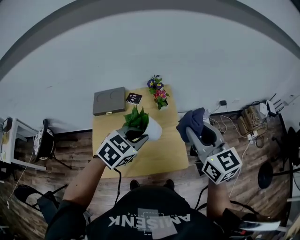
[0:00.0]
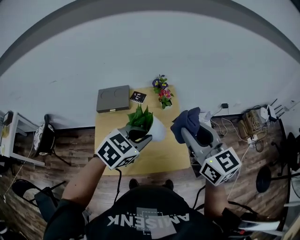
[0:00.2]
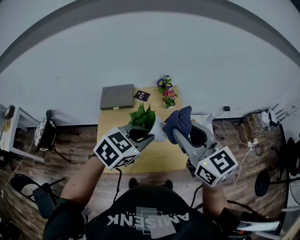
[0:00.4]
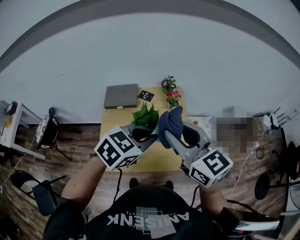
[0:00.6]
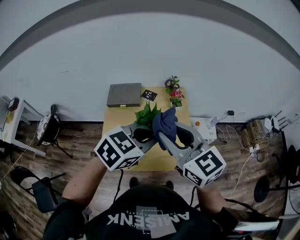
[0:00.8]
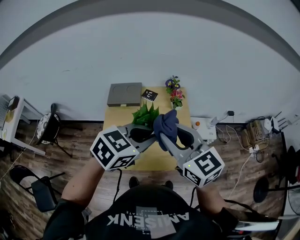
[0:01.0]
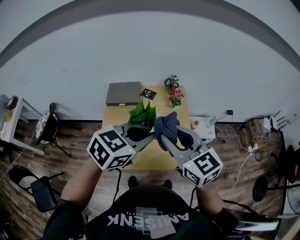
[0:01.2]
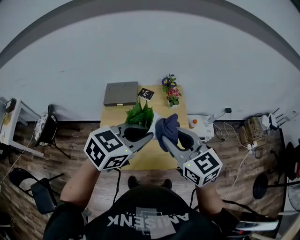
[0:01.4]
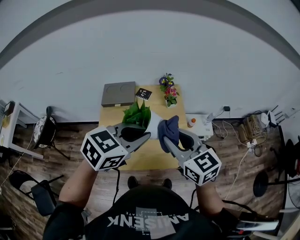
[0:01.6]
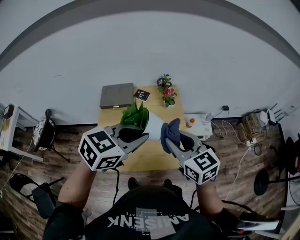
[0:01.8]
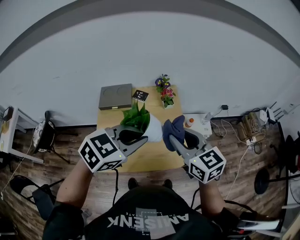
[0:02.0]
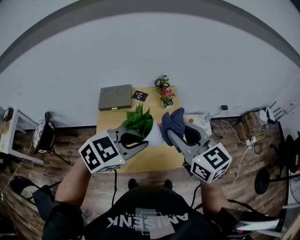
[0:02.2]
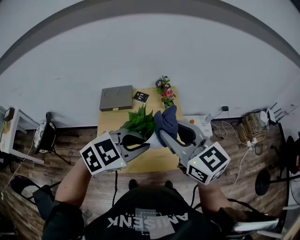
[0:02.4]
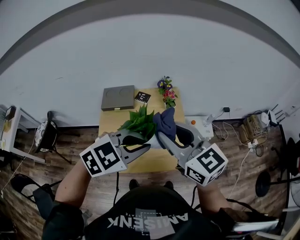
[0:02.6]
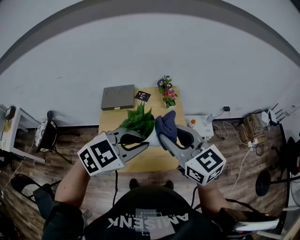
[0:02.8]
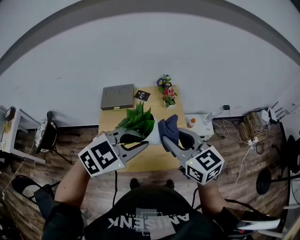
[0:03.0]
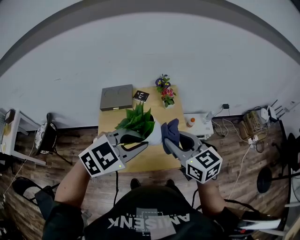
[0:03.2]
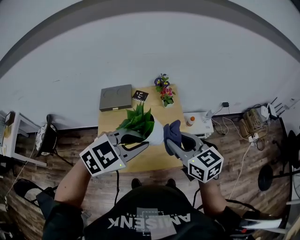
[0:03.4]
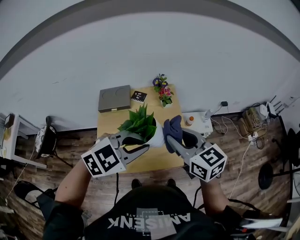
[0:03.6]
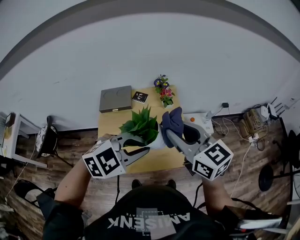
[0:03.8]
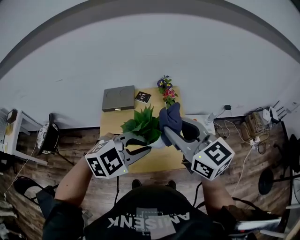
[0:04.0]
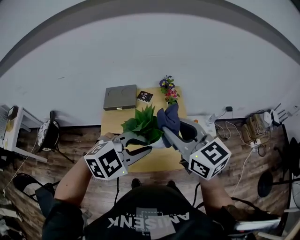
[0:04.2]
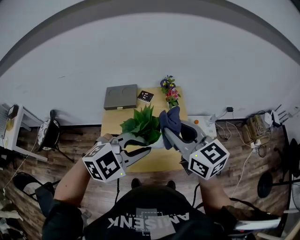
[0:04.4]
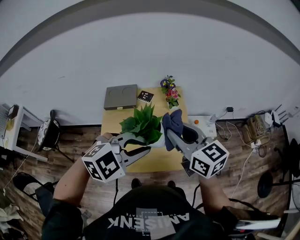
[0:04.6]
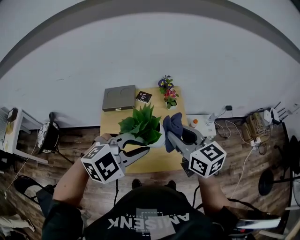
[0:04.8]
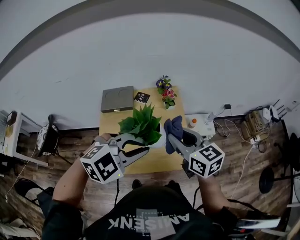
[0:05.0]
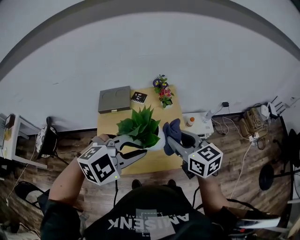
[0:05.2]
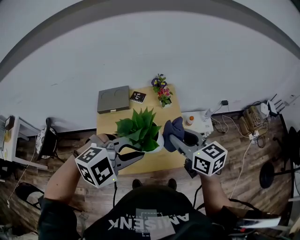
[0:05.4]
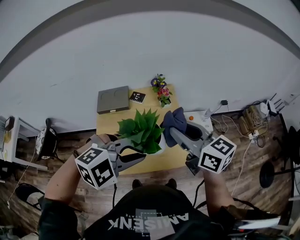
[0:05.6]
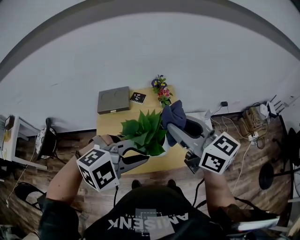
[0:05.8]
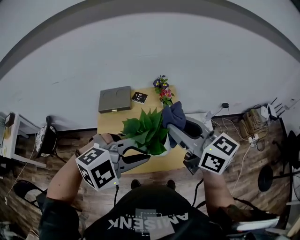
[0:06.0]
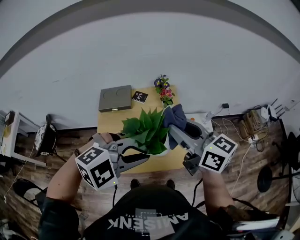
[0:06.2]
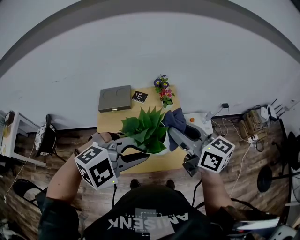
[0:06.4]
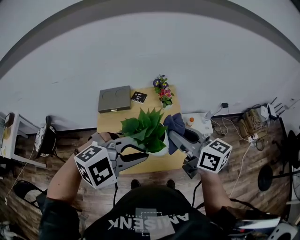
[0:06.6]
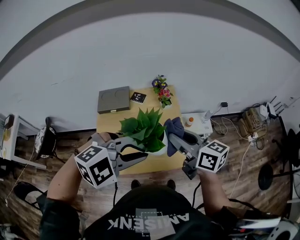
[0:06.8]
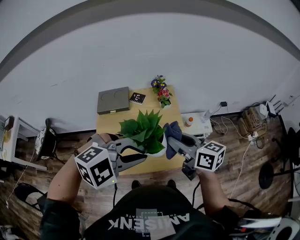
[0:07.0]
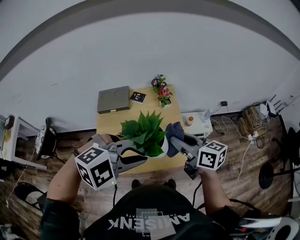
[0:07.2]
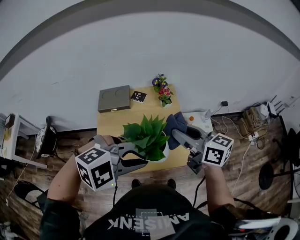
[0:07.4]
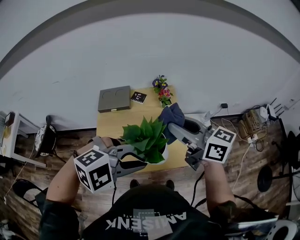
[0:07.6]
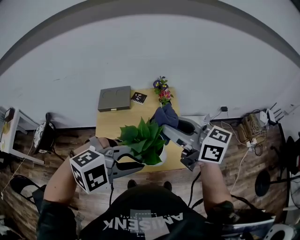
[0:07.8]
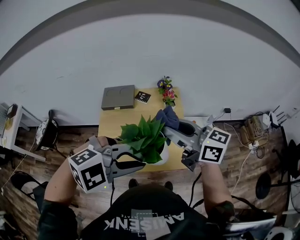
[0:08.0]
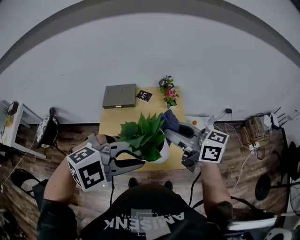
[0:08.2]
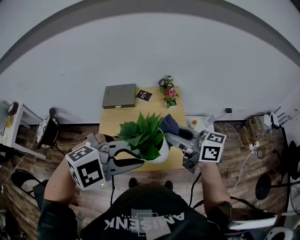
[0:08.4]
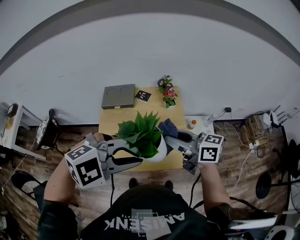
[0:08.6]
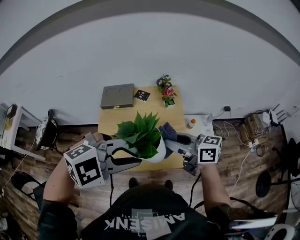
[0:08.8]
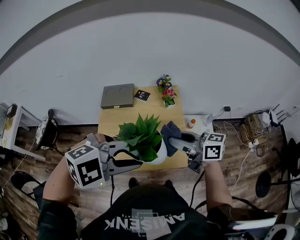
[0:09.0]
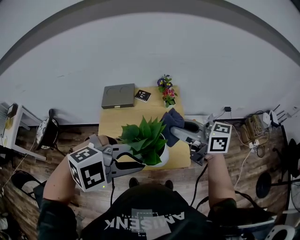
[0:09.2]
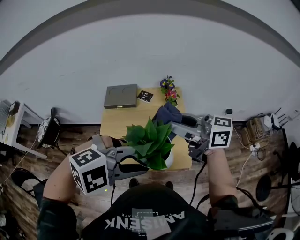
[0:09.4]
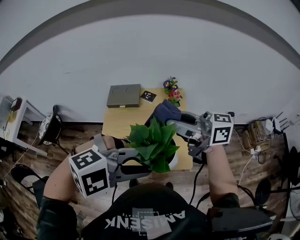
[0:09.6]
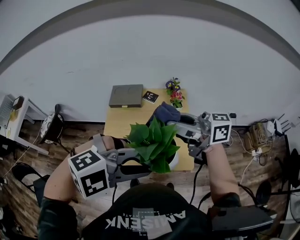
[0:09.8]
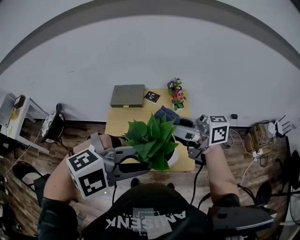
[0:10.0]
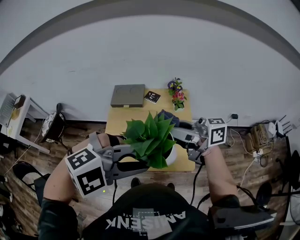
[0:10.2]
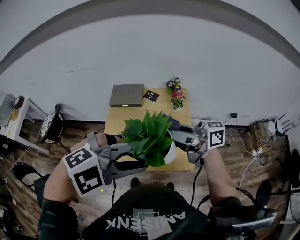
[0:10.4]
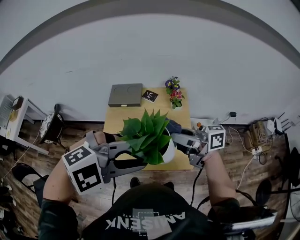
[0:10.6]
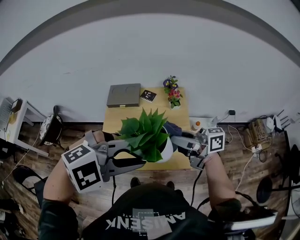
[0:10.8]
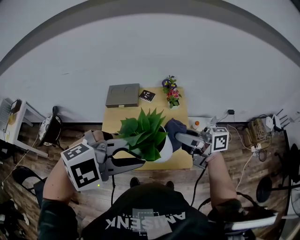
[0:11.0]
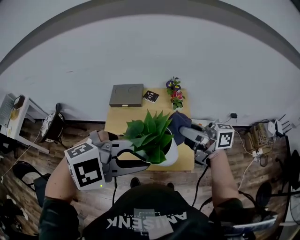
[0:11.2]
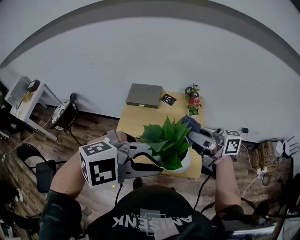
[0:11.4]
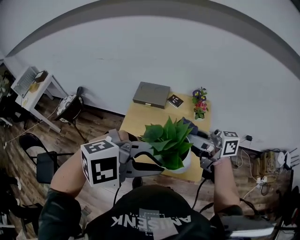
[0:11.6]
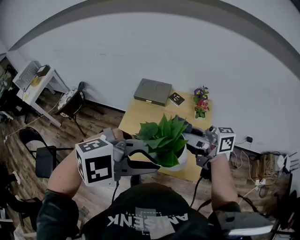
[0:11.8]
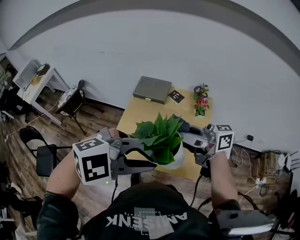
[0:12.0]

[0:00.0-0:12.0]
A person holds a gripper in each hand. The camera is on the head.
0:00.0 to 0:01.6: The left gripper goes approximately 10 cm upward and backward. The right gripper travels to the left and backward by approximately 15 cm.
0:01.6 to 0:03.0: The right gripper goes upward and returns, about 10 cm each way. The left gripper turns by some 20 degrees.
0:03.0 to 0:04.4: The right gripper goes upward and returns, about 5 cm each way.
0:04.4 to 0:06.0: The right gripper goes downward and returns, about 10 cm each way.
0:06.0 to 0:07.6: The right gripper moves some 10 cm downward and comes back.
0:07.6 to 0:09.0: The right gripper shifts roughly 10 cm downward.
0:09.0 to 0:10.4: The right gripper shifts some 5 cm upward, and changes its angle by roughly 30 degrees.
0:10.4 to 0:12.0: The grippers stay close to where they were, moving slightly.

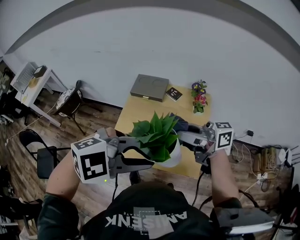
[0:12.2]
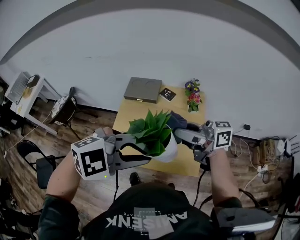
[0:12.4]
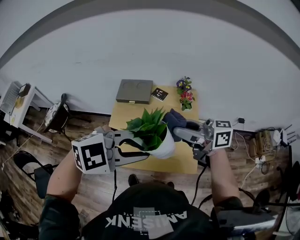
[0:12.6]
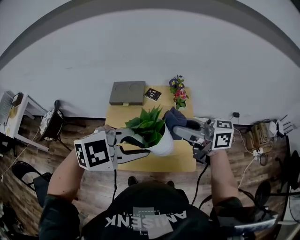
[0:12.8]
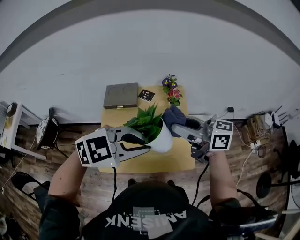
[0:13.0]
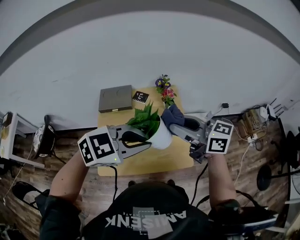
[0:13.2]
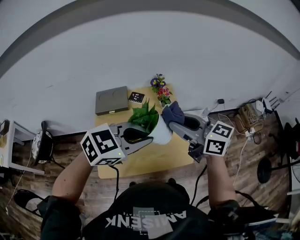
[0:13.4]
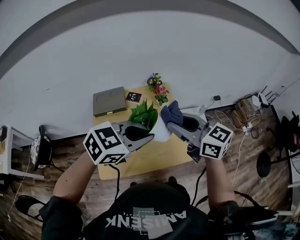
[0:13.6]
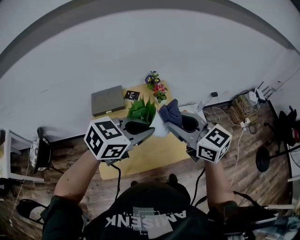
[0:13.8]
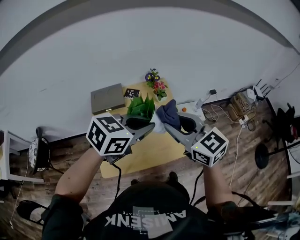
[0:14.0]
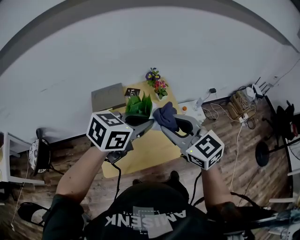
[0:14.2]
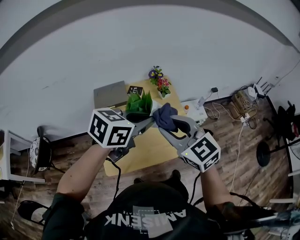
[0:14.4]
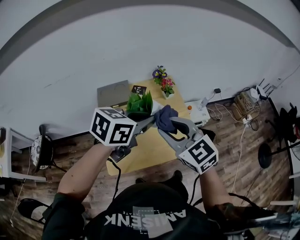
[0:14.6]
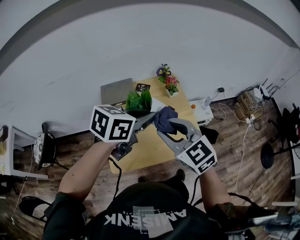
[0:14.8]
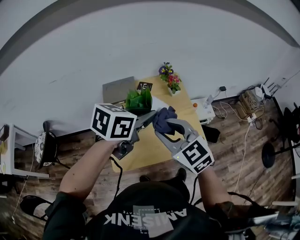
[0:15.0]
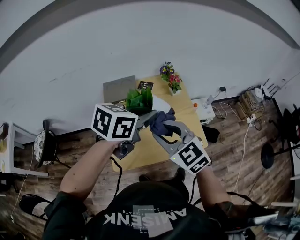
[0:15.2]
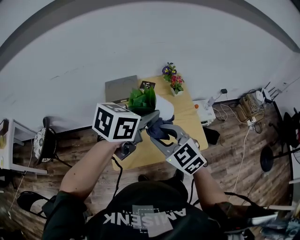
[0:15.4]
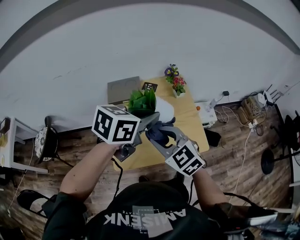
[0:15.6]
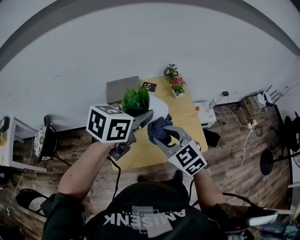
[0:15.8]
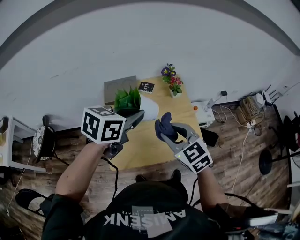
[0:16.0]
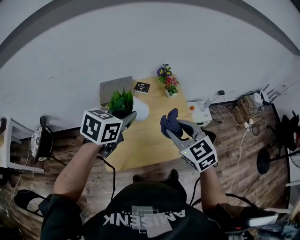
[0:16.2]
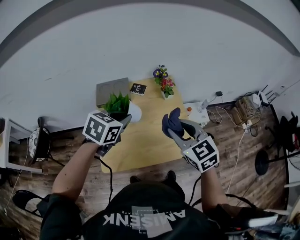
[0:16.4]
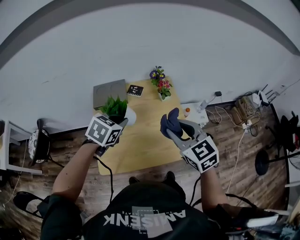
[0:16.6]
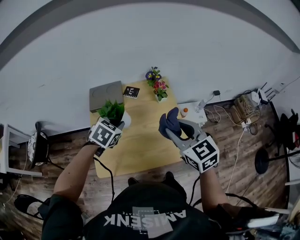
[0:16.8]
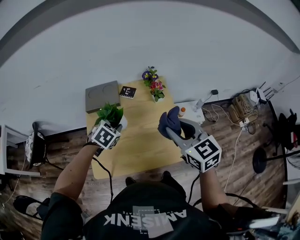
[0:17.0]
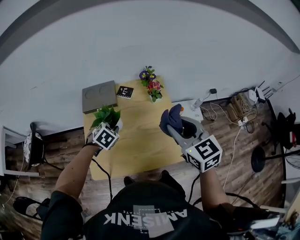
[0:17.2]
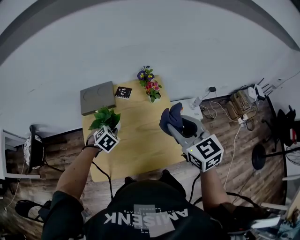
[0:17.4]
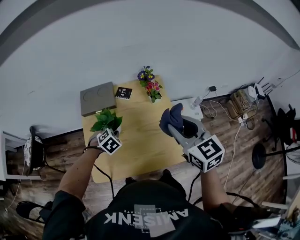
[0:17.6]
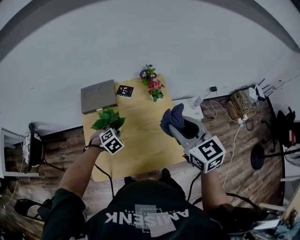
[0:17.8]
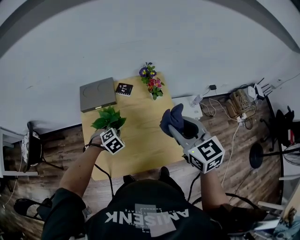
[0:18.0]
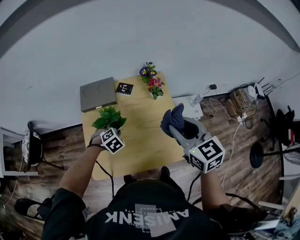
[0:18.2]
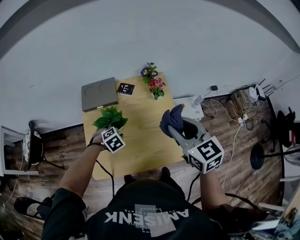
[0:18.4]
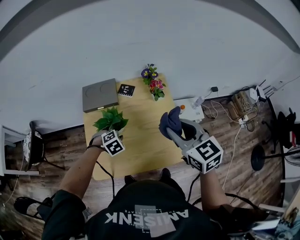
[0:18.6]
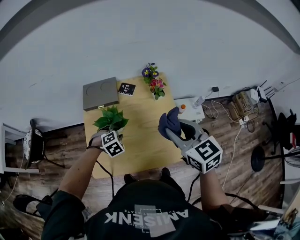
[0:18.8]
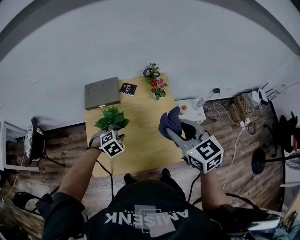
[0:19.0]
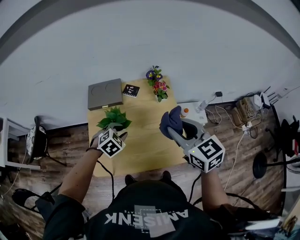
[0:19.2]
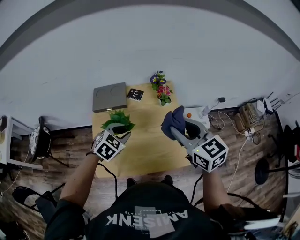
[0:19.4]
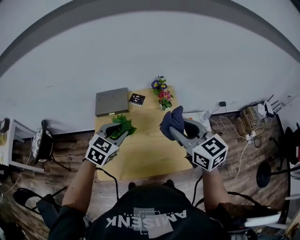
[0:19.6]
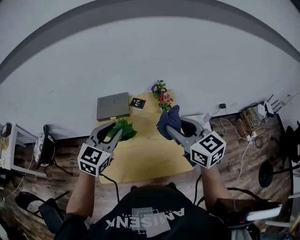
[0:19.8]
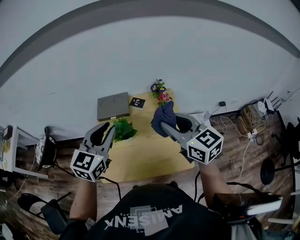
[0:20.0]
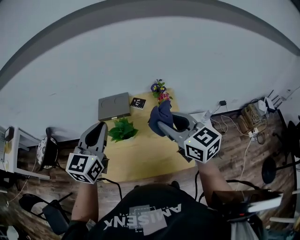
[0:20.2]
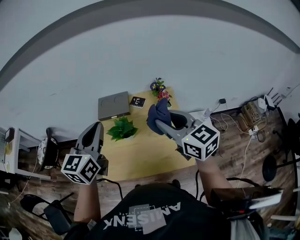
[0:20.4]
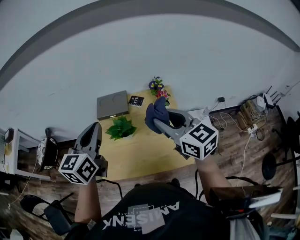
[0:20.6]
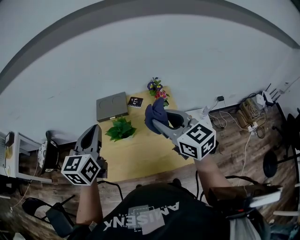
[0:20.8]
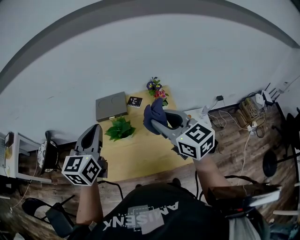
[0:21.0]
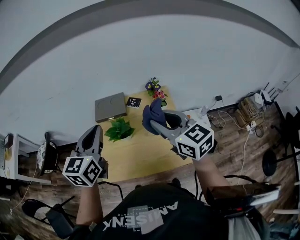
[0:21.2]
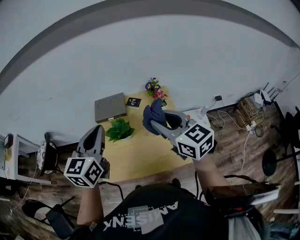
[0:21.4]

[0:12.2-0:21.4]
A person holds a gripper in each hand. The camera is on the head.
0:12.2 to 0:13.8: The left gripper shifts by some 10 cm, and turns by approximately 30 degrees; the right gripper turns by approximately 70 degrees.
0:13.8 to 0:15.2: The right gripper moves to the left, backward and downward, some 15 cm, and swivels roughly 20 degrees; the left gripper goes roughly 10 cm to the left, and changes its angle by roughly 20 degrees.
0:15.2 to 0:16.8: The left gripper heads downward and forward, covering roughly 15 cm, and turns by about 40 degrees; the right gripper goes roughly 15 cm to the right and forward.
0:16.8 to 0:18.4: The left gripper moves downward, approximately 15 cm, changes its angle by roughly 30 degrees, and opens its fingers.
0:18.4 to 0:19.8: The right gripper is displaced upward by roughly 5 cm; the left gripper moves upward, roughly 30 cm, and tips its fingers upward by about 50 degrees.
0:19.8 to 0:21.4: The left gripper is displaced upward by roughly 10 cm, rotates some 20 degrees, and closes up.

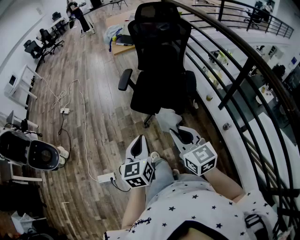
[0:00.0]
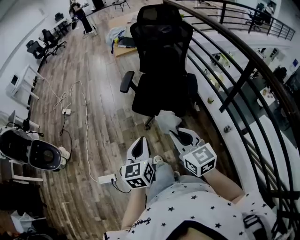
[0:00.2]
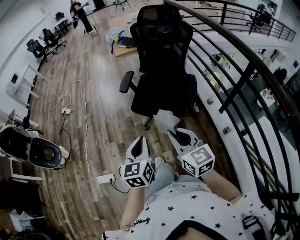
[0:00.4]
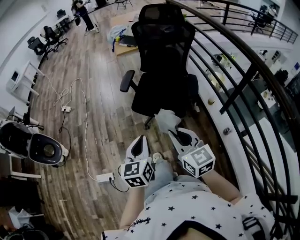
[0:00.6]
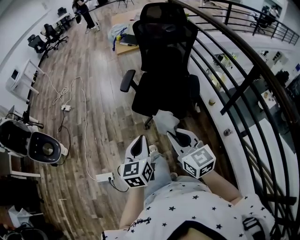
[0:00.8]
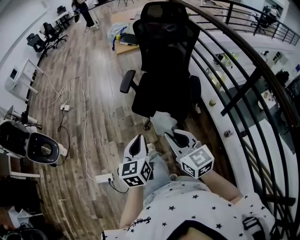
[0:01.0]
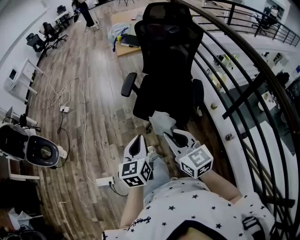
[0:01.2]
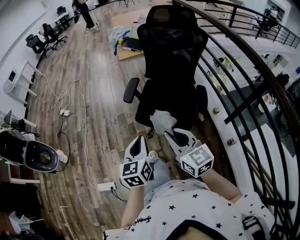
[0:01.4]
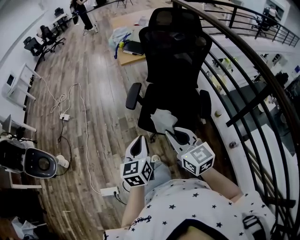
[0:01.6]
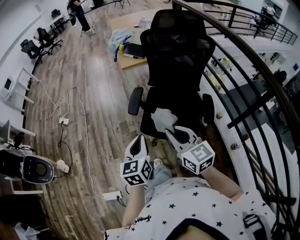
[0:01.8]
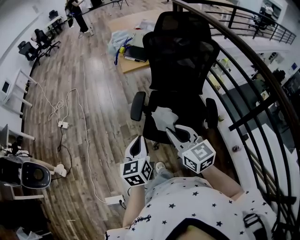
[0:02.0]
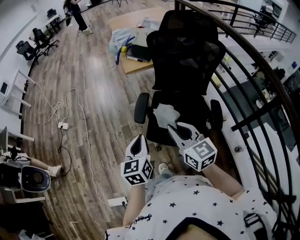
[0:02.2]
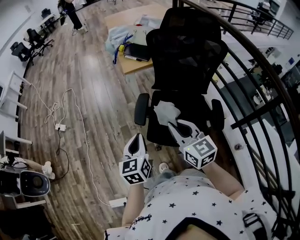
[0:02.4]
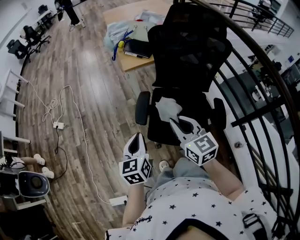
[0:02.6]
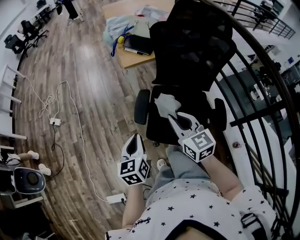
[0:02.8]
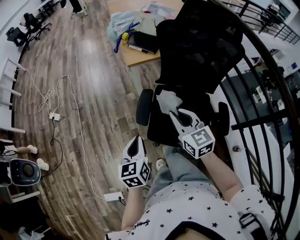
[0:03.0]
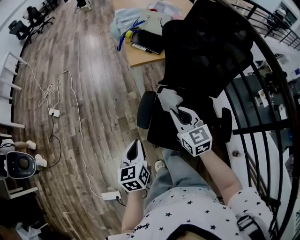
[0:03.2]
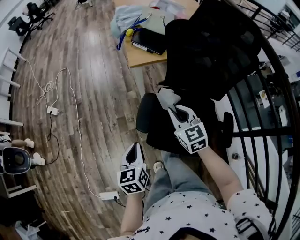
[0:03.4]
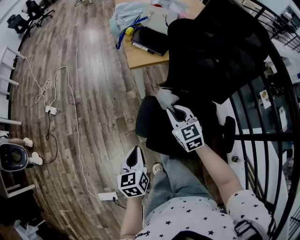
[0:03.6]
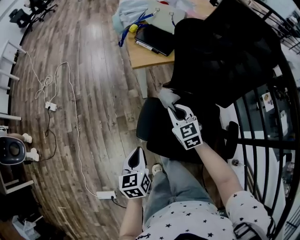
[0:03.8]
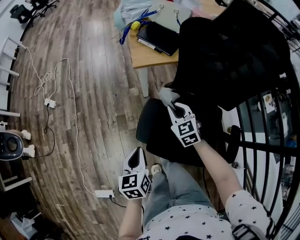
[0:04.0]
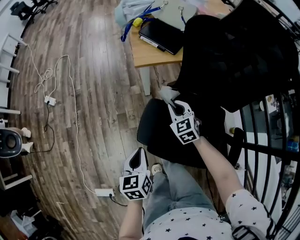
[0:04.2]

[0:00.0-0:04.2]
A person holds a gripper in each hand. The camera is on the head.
0:00.0 to 0:01.4: The grippers both shift forward by about 15 cm.
0:01.4 to 0:02.8: The two grippers go about 30 cm forward.
0:02.8 to 0:04.2: The left gripper moves downward and forward, some 15 cm; the right gripper goes some 35 cm forward and downward, and swivels approximately 30 degrees.
